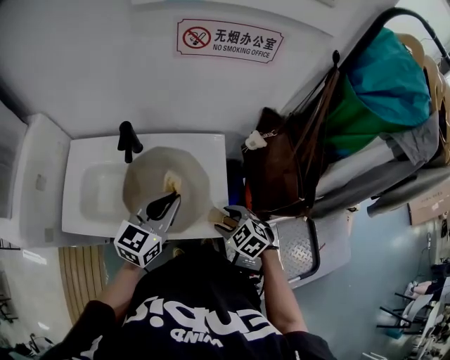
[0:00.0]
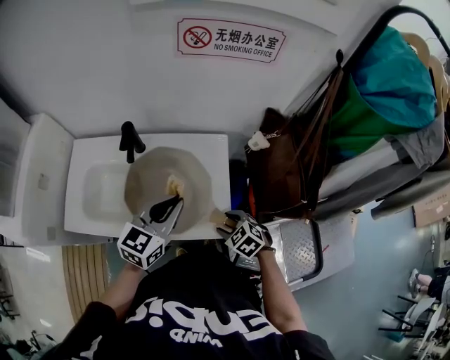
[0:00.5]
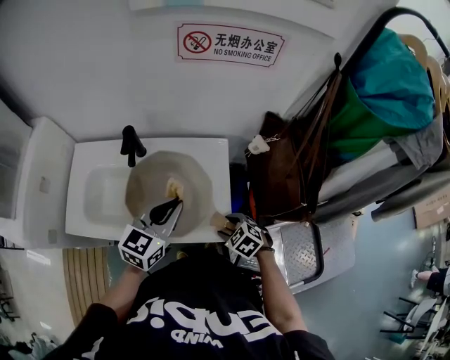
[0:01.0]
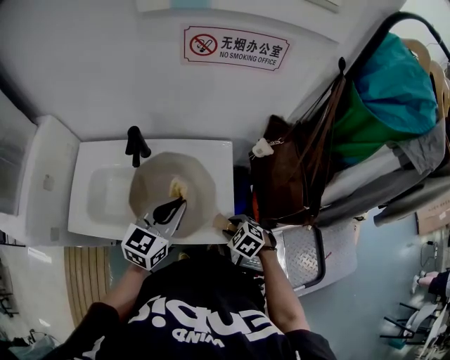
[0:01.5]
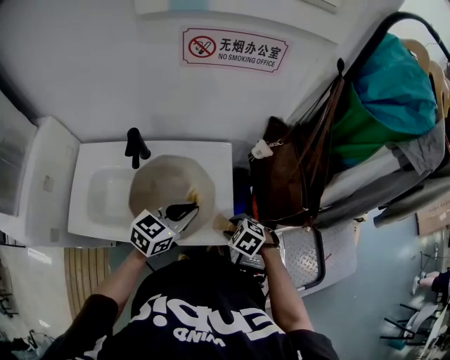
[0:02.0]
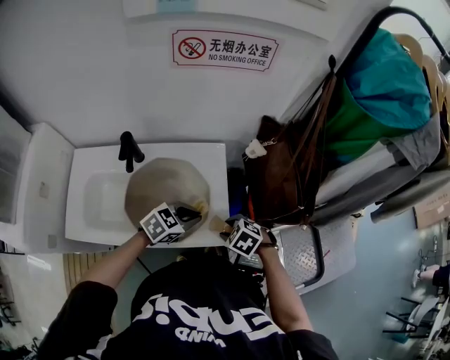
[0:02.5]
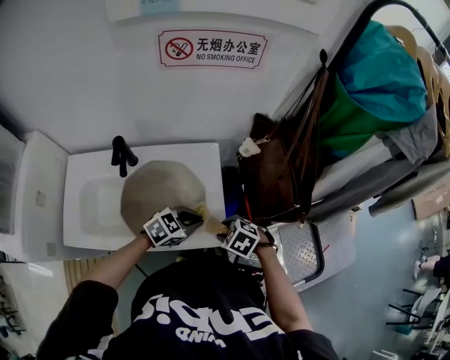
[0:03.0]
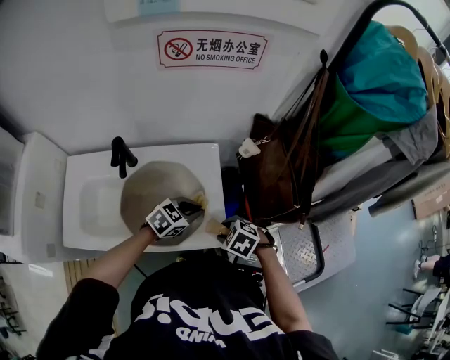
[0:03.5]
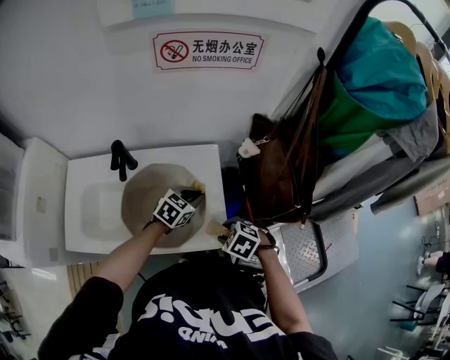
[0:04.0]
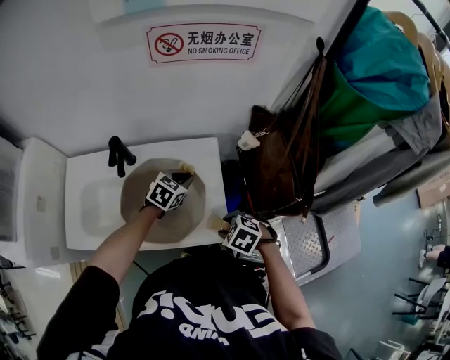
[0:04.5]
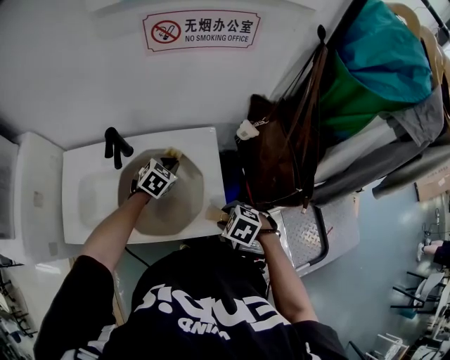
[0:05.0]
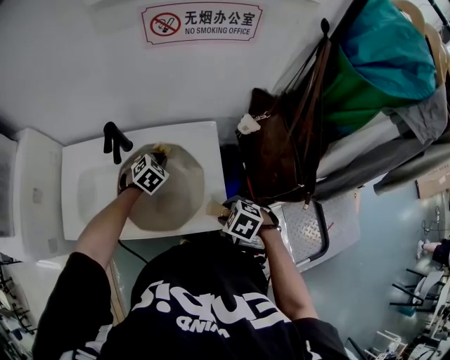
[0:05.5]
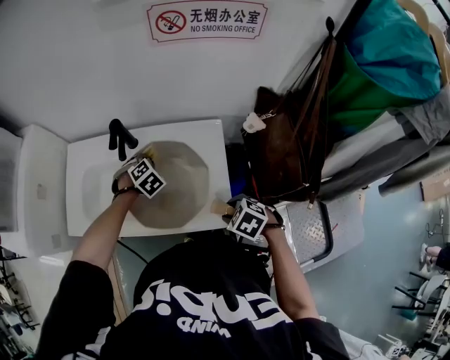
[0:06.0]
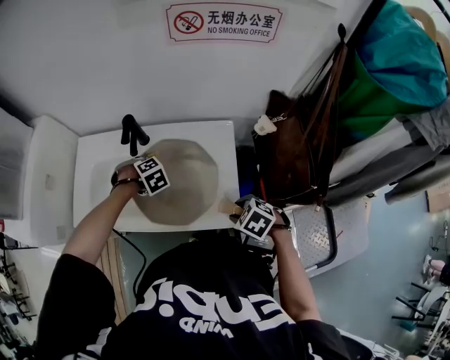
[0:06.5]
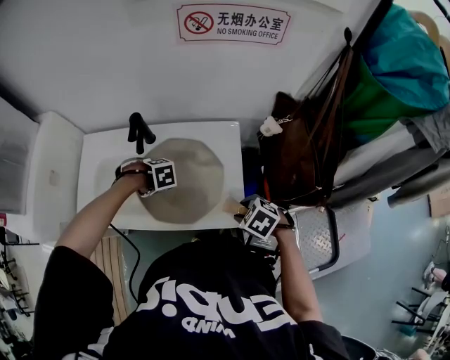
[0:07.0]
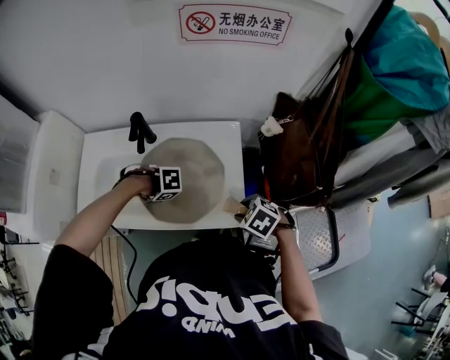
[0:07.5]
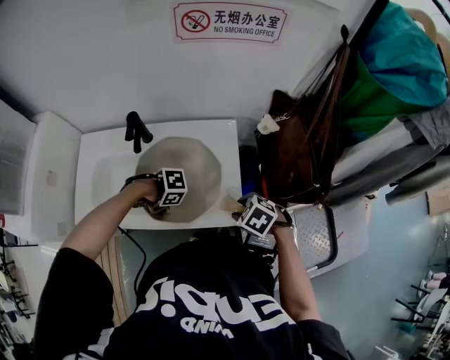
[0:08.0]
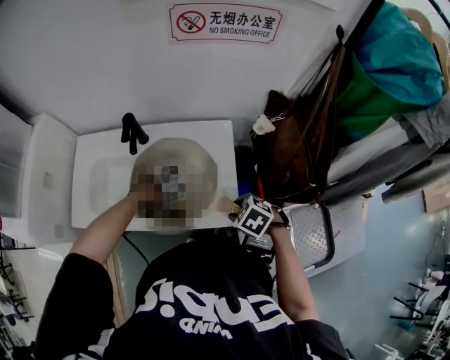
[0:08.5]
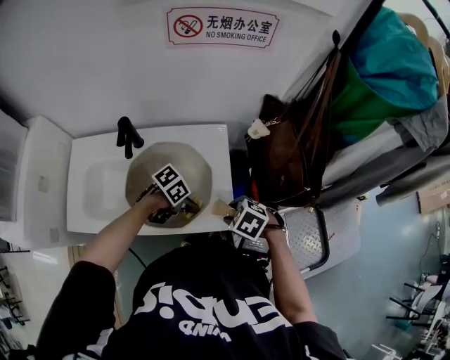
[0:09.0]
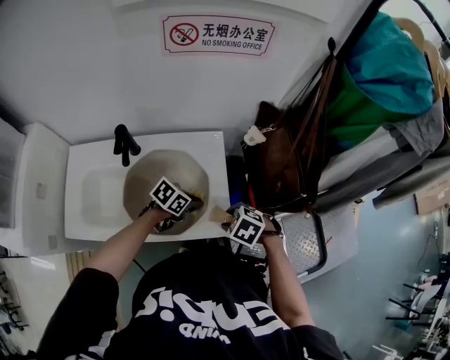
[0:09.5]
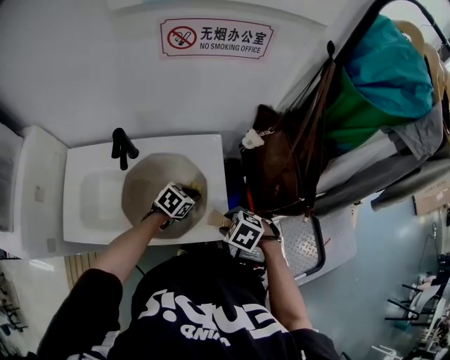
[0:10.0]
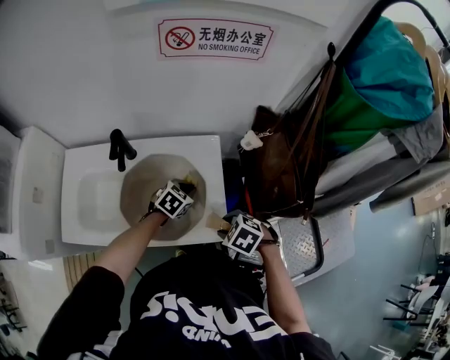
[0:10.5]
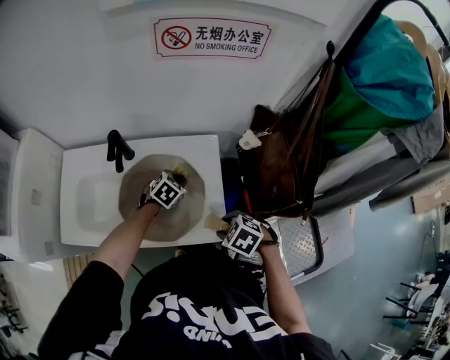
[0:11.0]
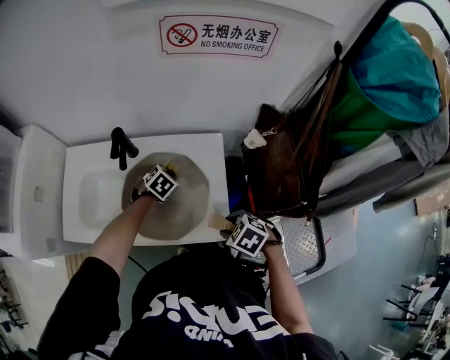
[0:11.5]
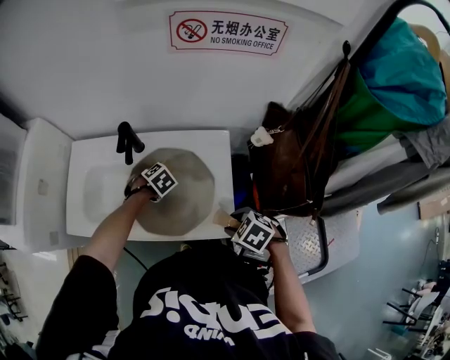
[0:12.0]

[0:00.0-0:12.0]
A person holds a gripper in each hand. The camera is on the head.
0:00.0 to 0:02.0: The left gripper goes approximately 5 cm downward.
0:02.0 to 0:04.0: The left gripper moves downward, some 10 cm.
0:04.0 to 0:06.0: The left gripper ends up about 20 cm from where it was, and rotates roughly 40 degrees.
0:06.0 to 0:08.0: The left gripper moves approximately 20 cm, and rotates approximately 60 degrees.
0:08.0 to 0:10.0: The left gripper changes place by roughly 20 cm, and changes its angle by some 60 degrees.
0:10.0 to 0:12.0: The left gripper shifts by about 15 cm, and swivels about 30 degrees.

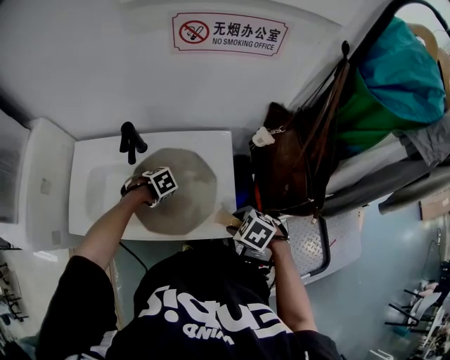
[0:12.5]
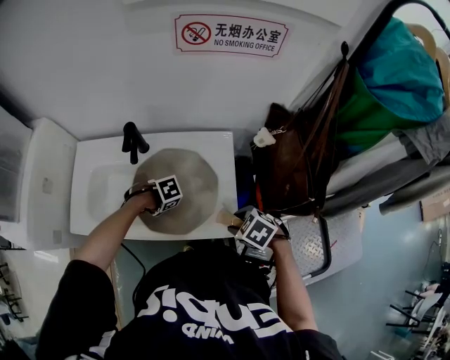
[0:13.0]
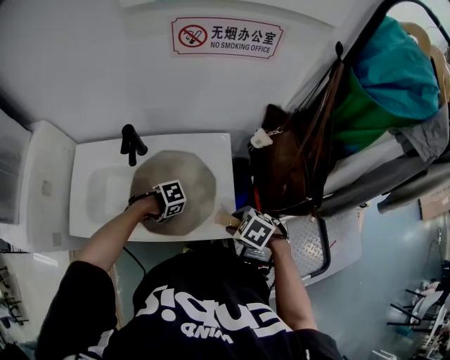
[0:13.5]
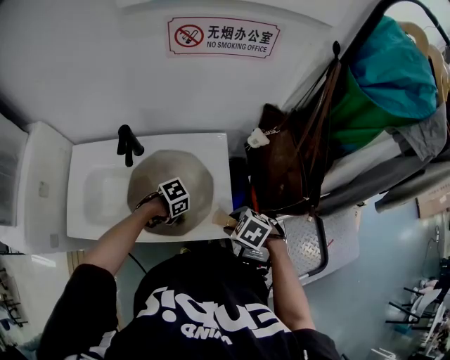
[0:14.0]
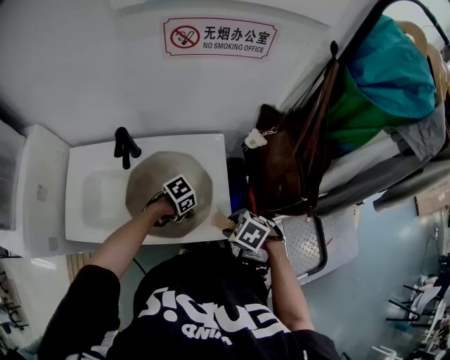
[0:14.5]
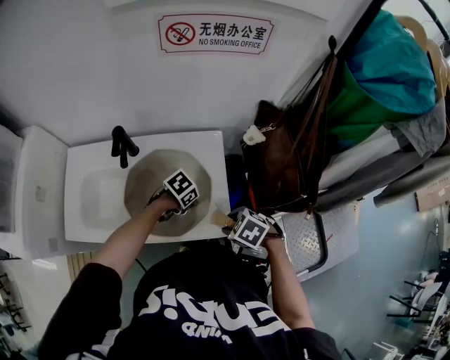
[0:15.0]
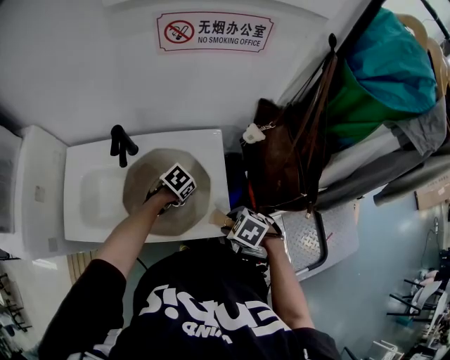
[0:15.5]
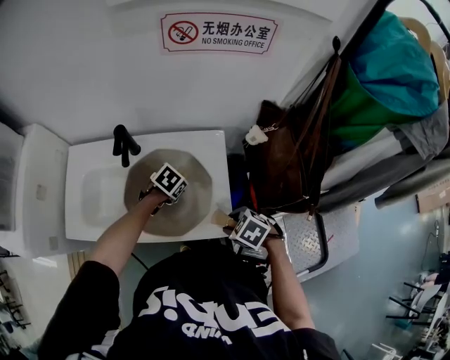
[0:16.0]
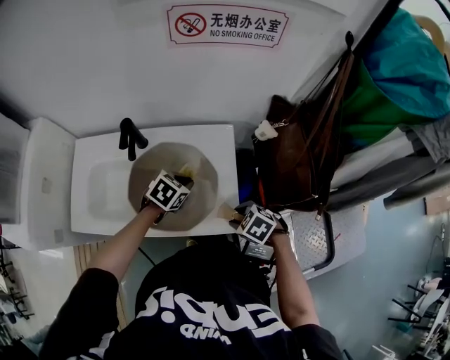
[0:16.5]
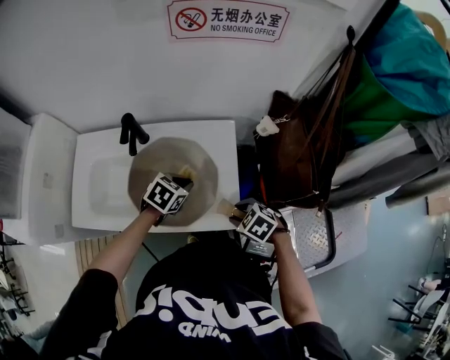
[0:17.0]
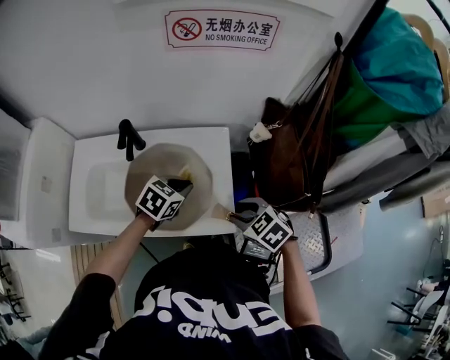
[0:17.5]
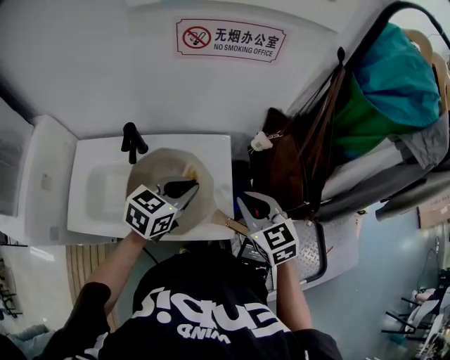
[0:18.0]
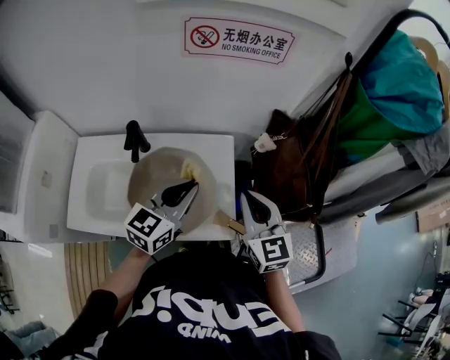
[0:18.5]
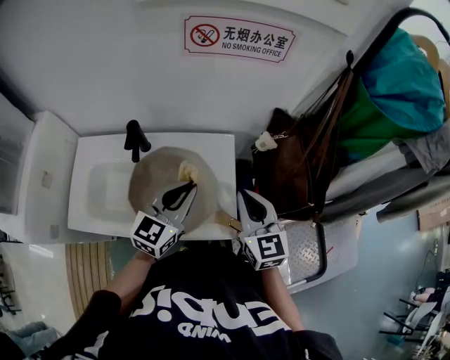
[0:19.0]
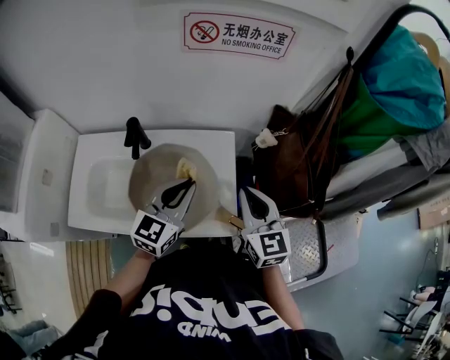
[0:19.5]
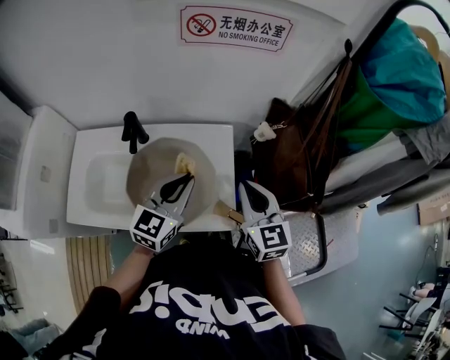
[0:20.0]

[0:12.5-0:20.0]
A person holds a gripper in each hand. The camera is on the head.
0:12.5 to 0:14.5: The left gripper changes place by approximately 15 cm, and rotates about 30 degrees.
0:14.5 to 0:16.5: The left gripper moves some 10 cm, and swivels roughly 40 degrees.
0:16.5 to 0:18.0: Both grippers travel together upward, some 20 cm. The right gripper angles its fingers upward, by approximately 40 degrees, and closes. Meanwhile the left gripper swivels some 30 degrees.
0:18.0 to 0:20.0: The left gripper changes its angle by some 20 degrees.

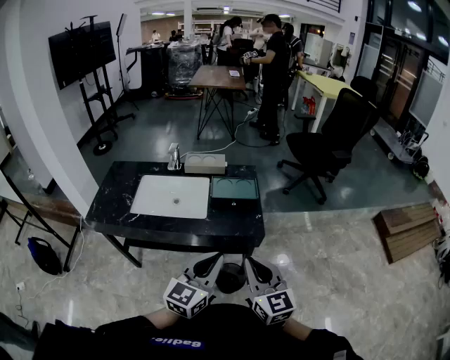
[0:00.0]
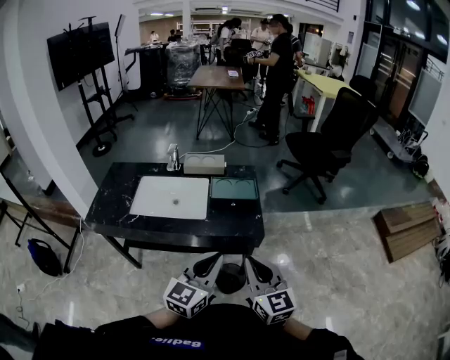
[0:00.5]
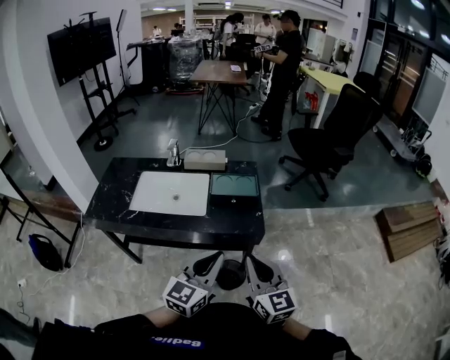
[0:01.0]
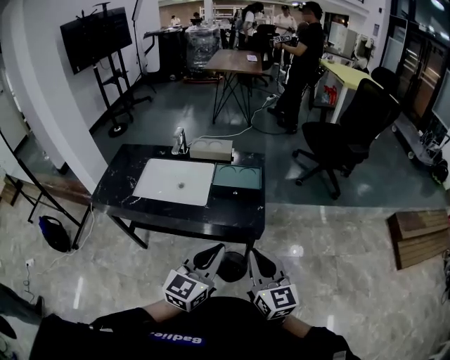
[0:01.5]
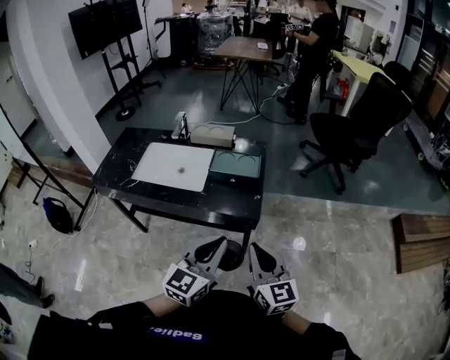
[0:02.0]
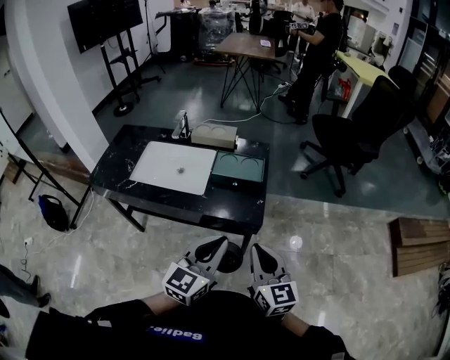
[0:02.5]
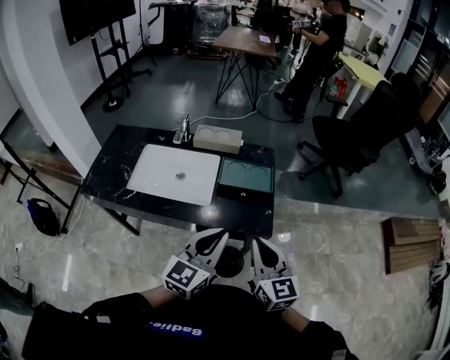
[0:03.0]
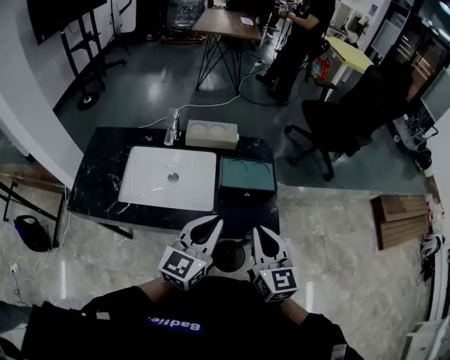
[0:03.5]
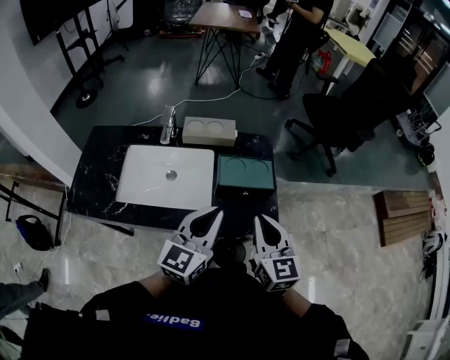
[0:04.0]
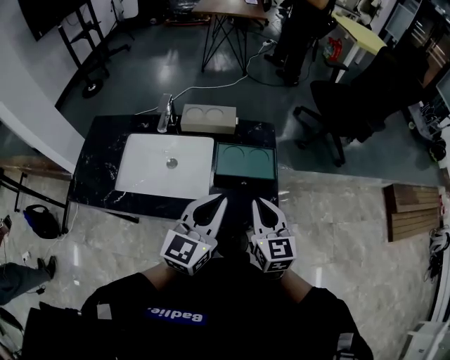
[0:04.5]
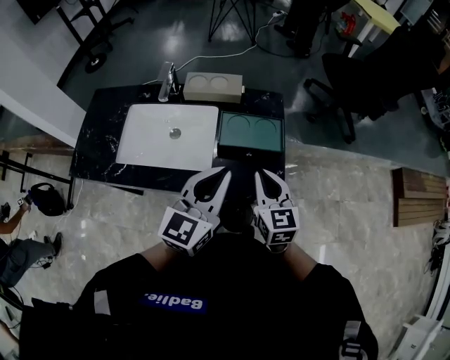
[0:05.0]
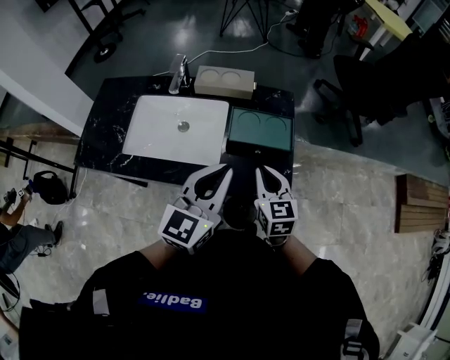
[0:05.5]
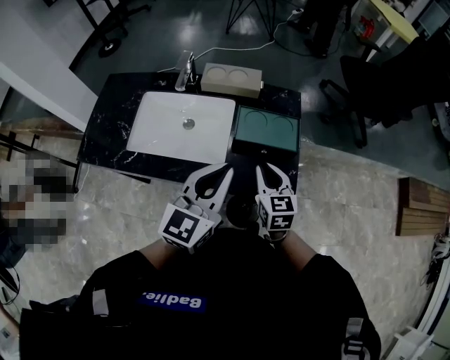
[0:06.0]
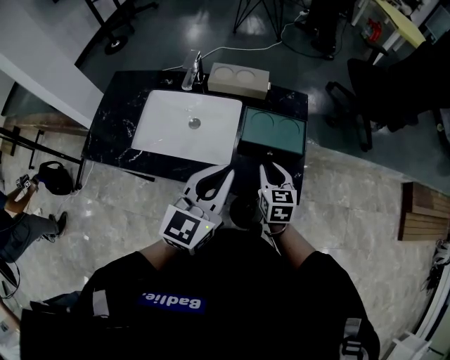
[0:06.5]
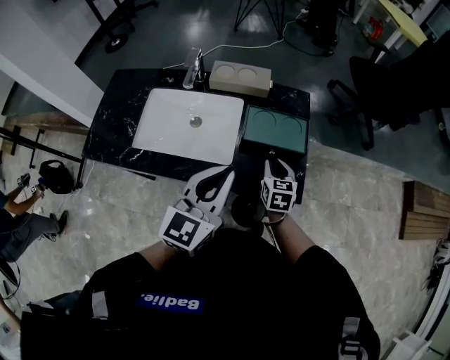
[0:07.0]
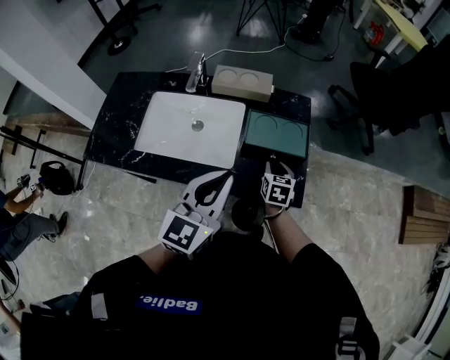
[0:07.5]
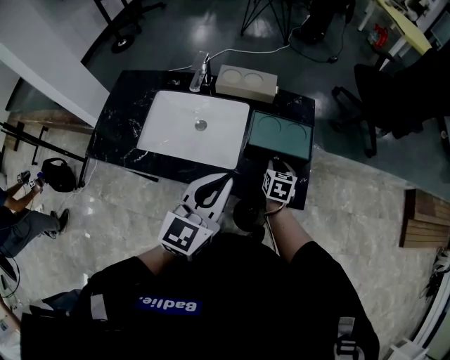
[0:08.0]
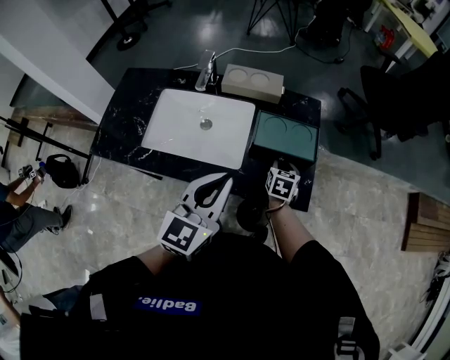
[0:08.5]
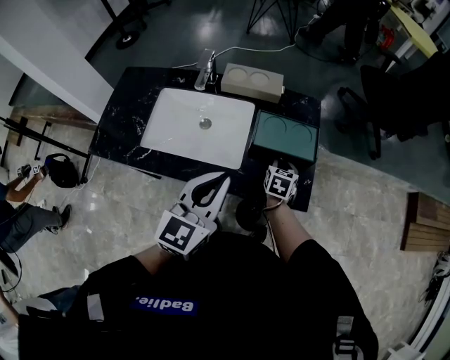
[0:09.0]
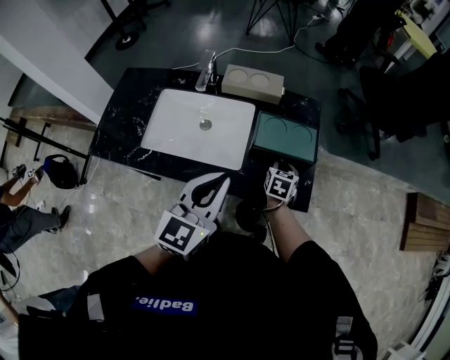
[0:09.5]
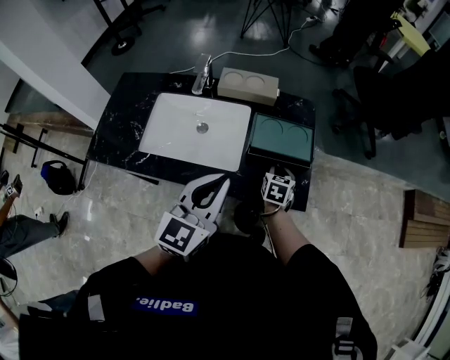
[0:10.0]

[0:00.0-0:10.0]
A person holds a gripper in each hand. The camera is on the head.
0:00.0 to 0:02.0: Both grippers travel together to the right, approximately 10 cm.
0:02.0 to 0:04.0: Both grippers move forward and to the left, approximately 25 cm.
0:04.0 to 0:06.0: The right gripper moves downward and forward, roughly 15 cm.
0:06.0 to 0:08.0: The right gripper shifts roughly 15 cm downward and forward, and swivels roughly 20 degrees.
0:08.0 to 0:10.0: The grippers stay close to where they were, moving slightly.
